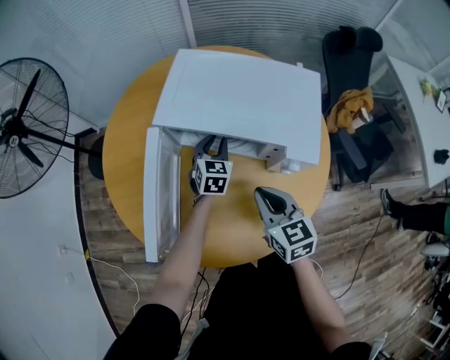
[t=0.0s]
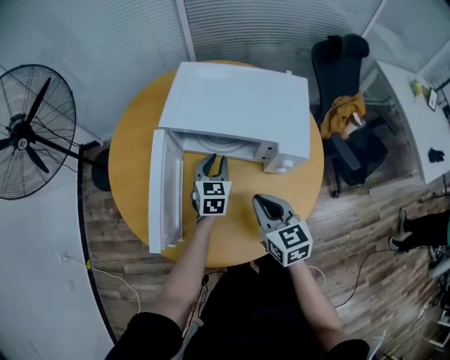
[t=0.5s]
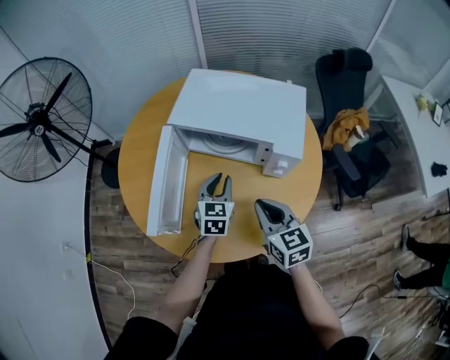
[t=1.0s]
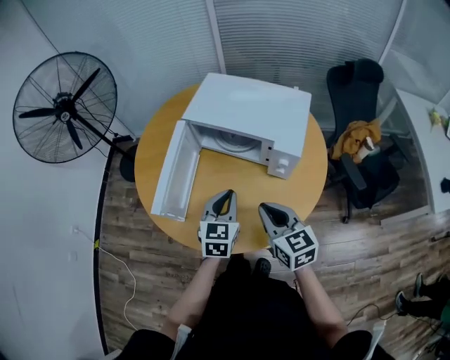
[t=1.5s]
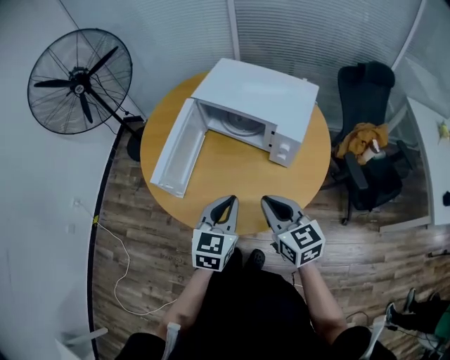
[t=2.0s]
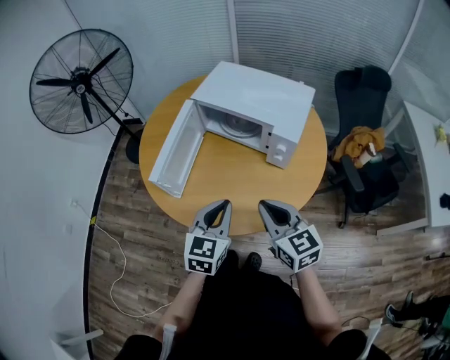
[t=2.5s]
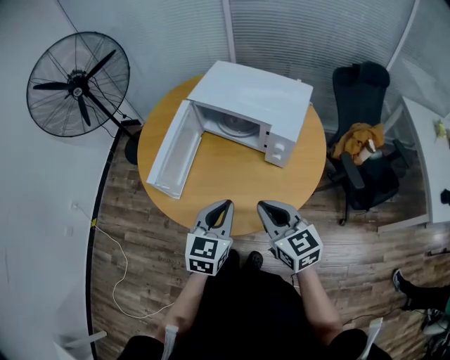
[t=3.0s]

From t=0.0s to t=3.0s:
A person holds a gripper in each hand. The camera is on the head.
From t=0.0s to t=1.5s: The right gripper shifts some 15 cm backward and upward. Meanwhile the left gripper heads backward and upward, covering approximately 30 cm.
From t=1.5s to t=3.0s: The right gripper goes roughly 5 cm backward, while the left gripper heads backward, covering approximately 10 cm.

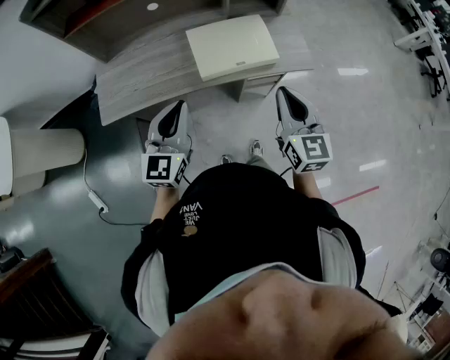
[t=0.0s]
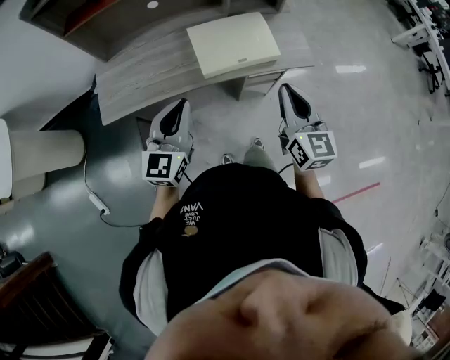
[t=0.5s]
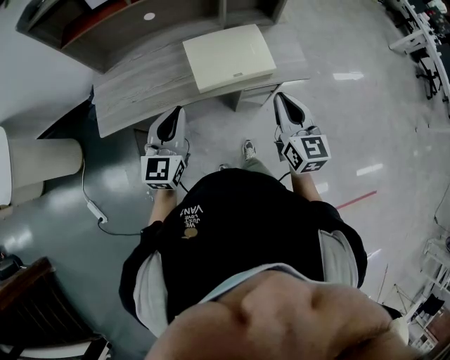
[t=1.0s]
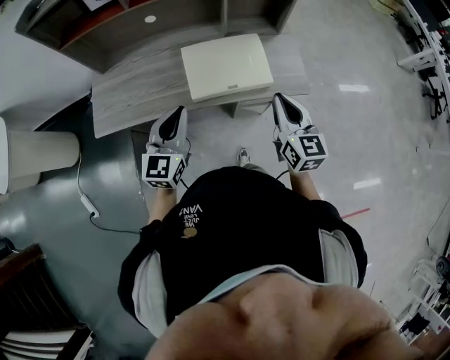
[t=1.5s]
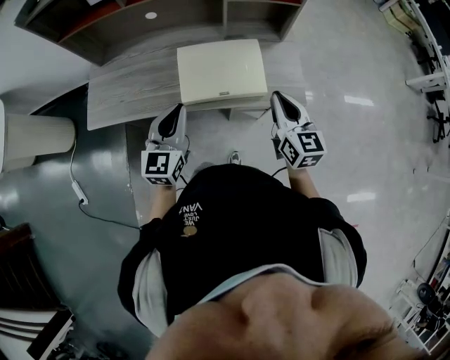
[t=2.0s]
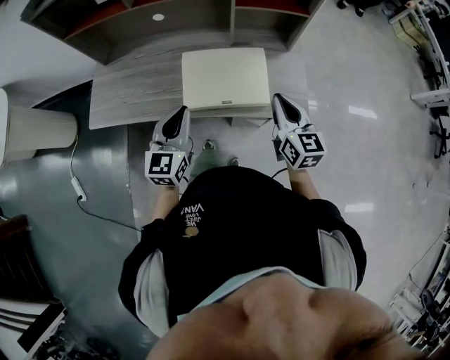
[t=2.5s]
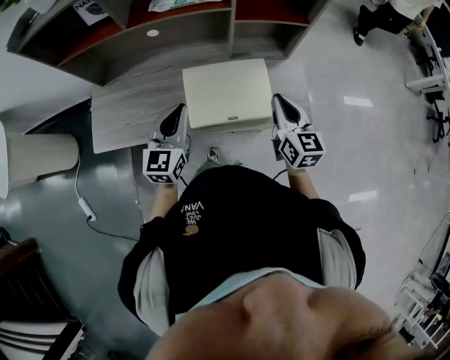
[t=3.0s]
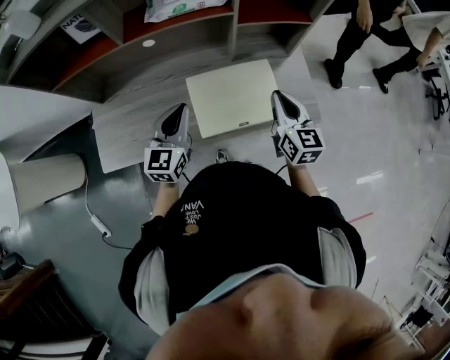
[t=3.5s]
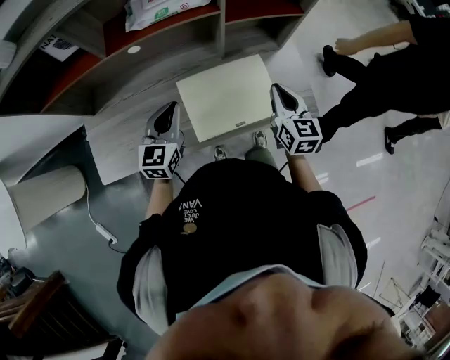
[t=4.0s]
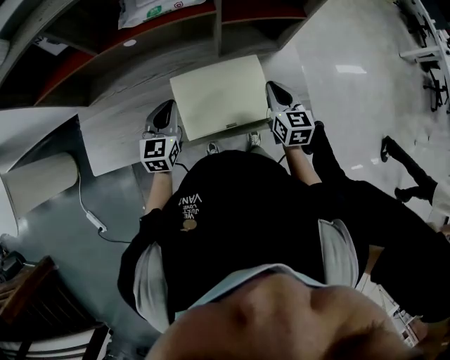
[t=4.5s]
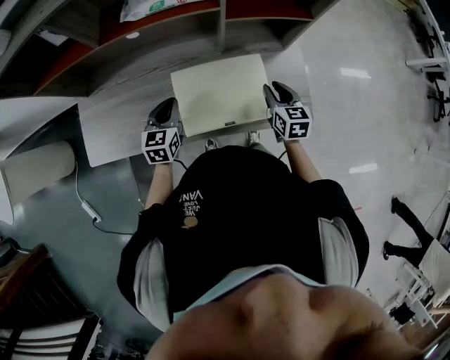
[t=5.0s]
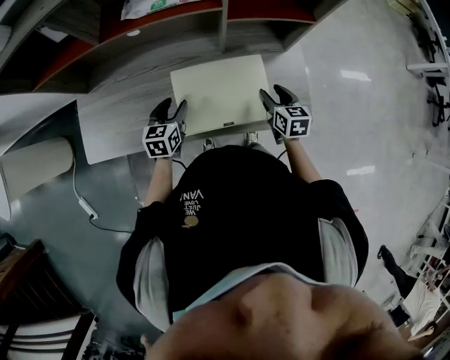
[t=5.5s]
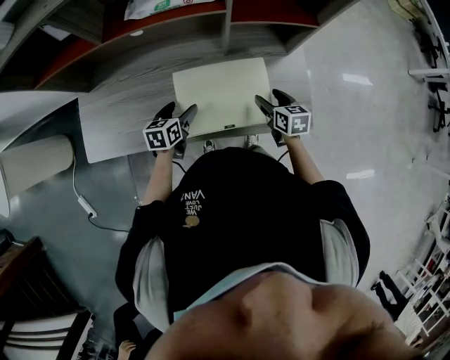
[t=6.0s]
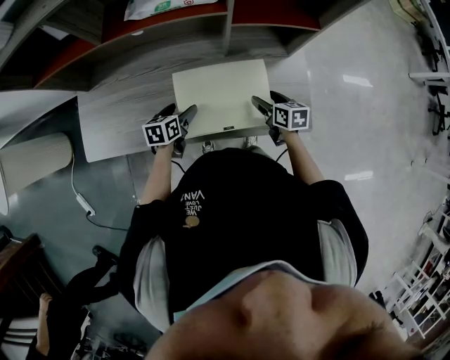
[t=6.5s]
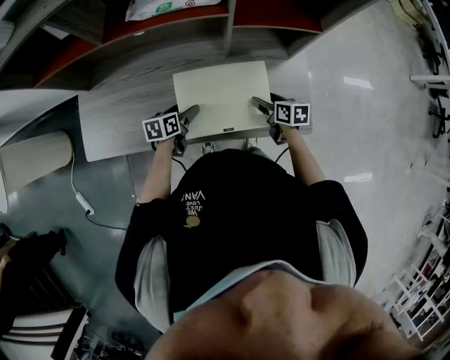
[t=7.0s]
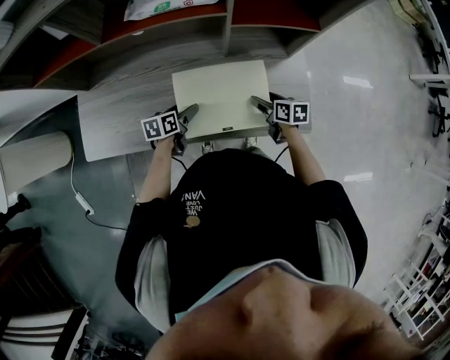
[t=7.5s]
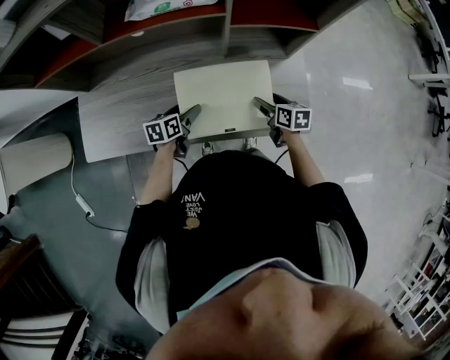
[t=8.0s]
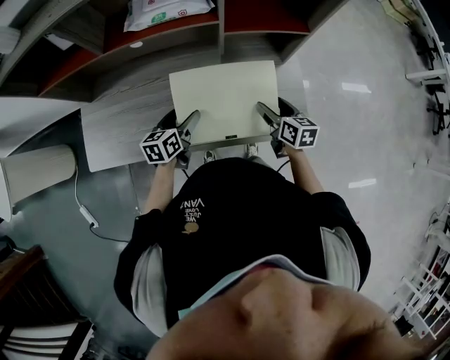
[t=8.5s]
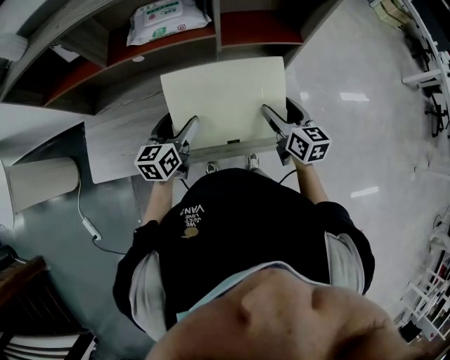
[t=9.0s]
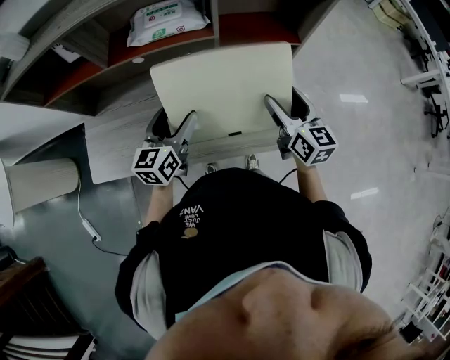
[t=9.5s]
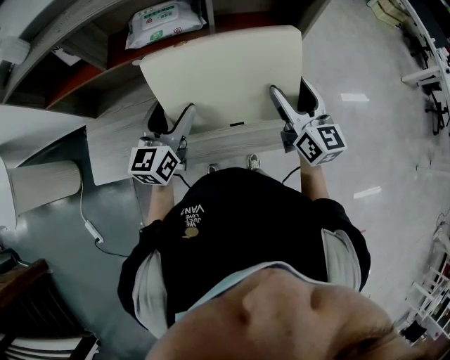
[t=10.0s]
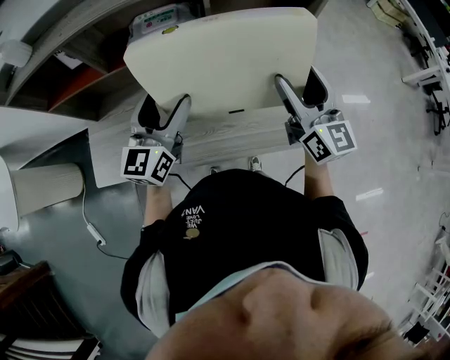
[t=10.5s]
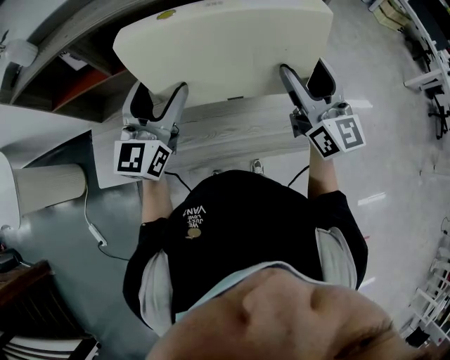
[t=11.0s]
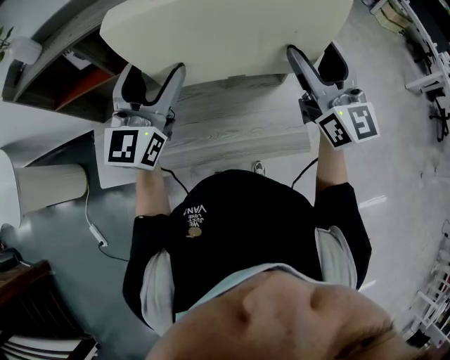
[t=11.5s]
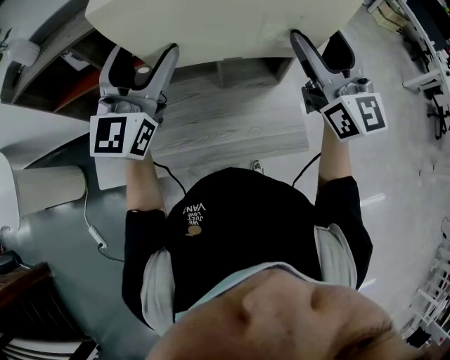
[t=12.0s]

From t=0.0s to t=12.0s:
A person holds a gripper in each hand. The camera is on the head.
From t=0.0s to t=2.0s: Both grippers move forward and to the right, some 15 cm.
From t=2.0s to t=4.0s: The grippers both shift forward by about 15 cm.
From t=4.0s to t=6.0s: Both grippers travel together downward, about 15 cm. The left gripper turns by some 40 degrees, and opens its fingers. Meanwhile the right gripper rotates about 30 degrees, and opens.
From t=6.0s to t=8.0s: The grippers stay close to where they were, moving slightly.
From t=8.0s to t=10.0s: The grippers both shift upward by some 30 cm. The right gripper angles its fingers upward, by roughly 40 degrees; the left gripper tips its fingers upward by about 30 degrees.
From t=10.0s to t=12.0s: The grippers both shift upward by approximately 20 cm. The right gripper changes its angle by approximately 20 degrees. Meanwhile the left gripper swivels roughly 30 degrees.

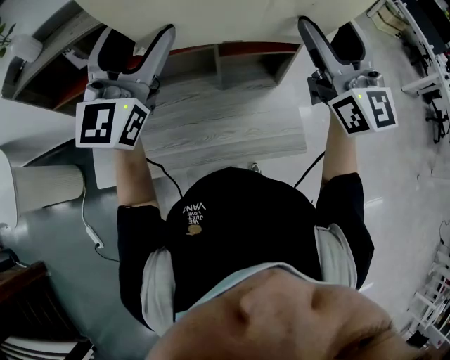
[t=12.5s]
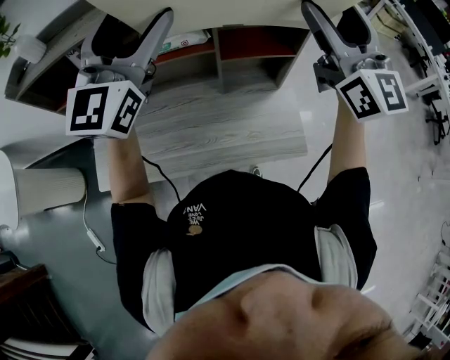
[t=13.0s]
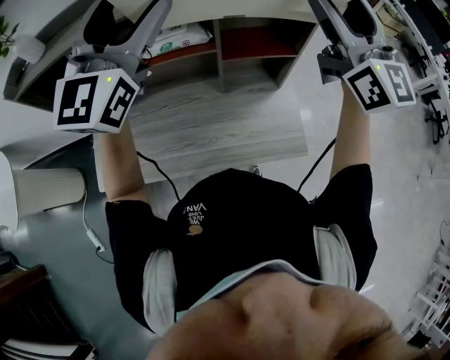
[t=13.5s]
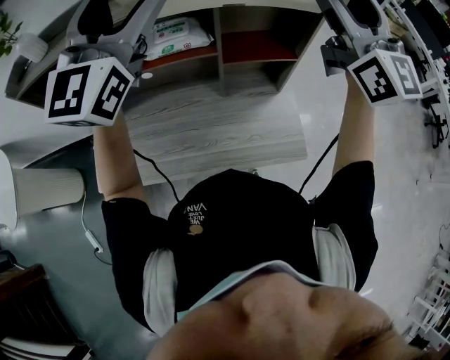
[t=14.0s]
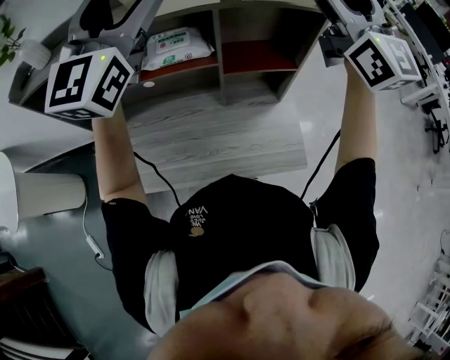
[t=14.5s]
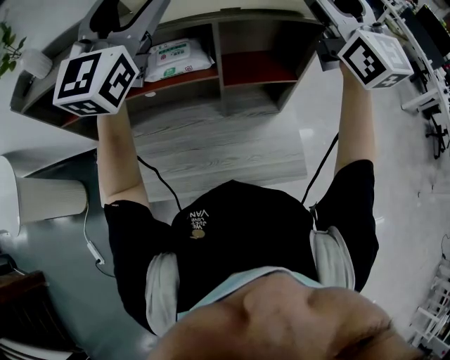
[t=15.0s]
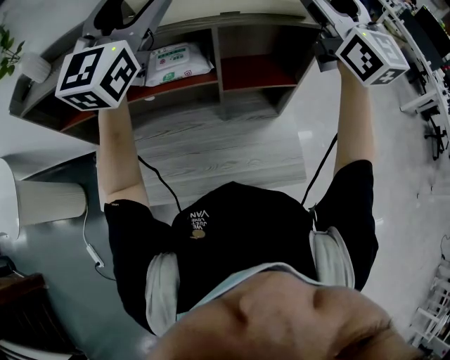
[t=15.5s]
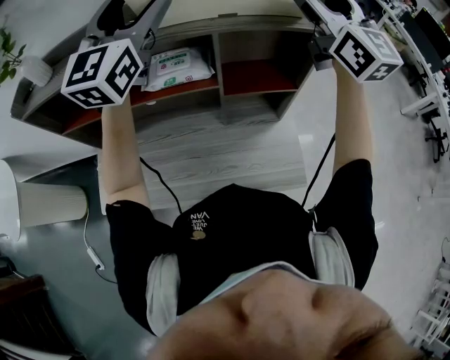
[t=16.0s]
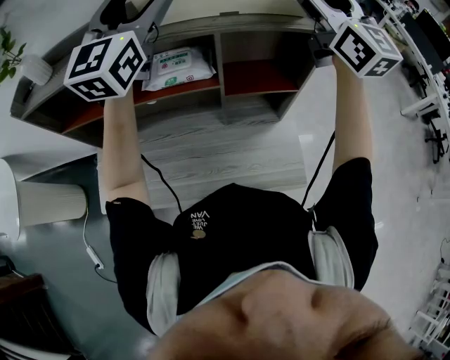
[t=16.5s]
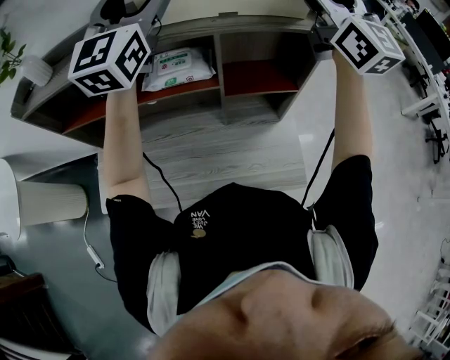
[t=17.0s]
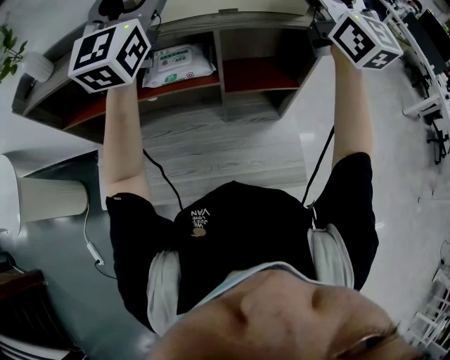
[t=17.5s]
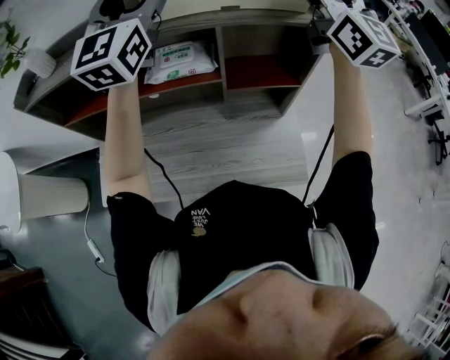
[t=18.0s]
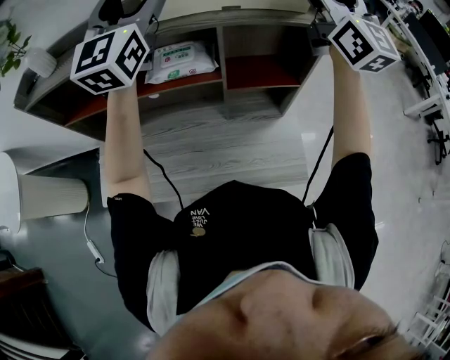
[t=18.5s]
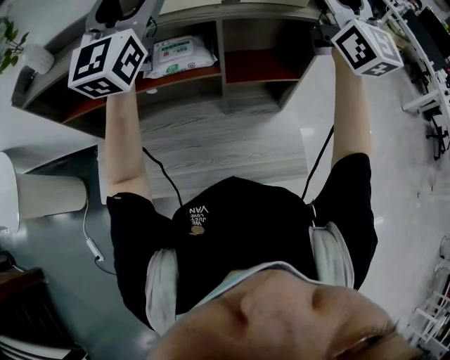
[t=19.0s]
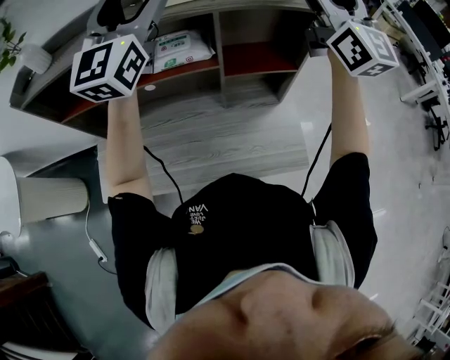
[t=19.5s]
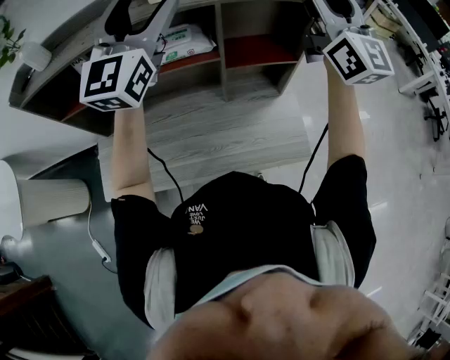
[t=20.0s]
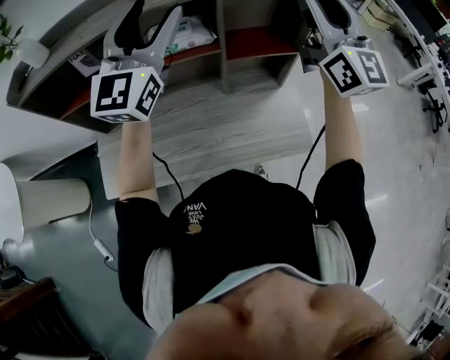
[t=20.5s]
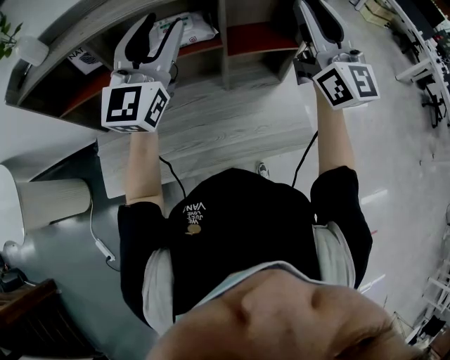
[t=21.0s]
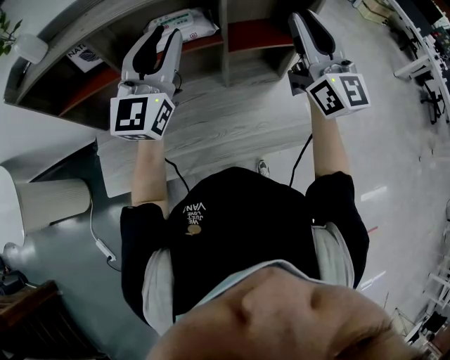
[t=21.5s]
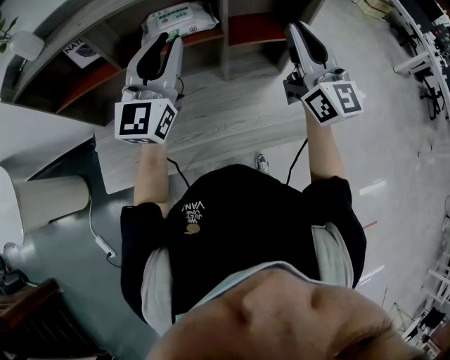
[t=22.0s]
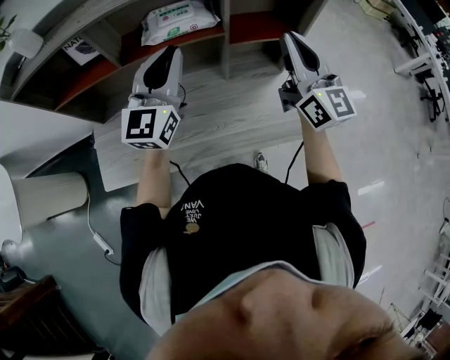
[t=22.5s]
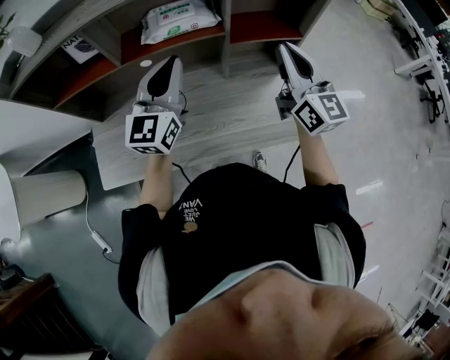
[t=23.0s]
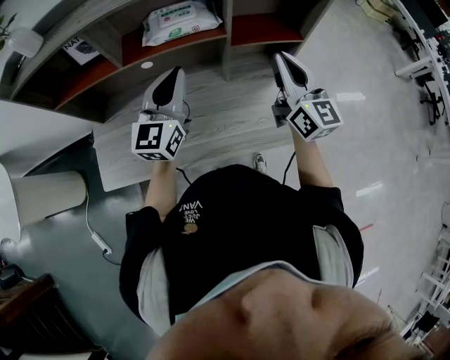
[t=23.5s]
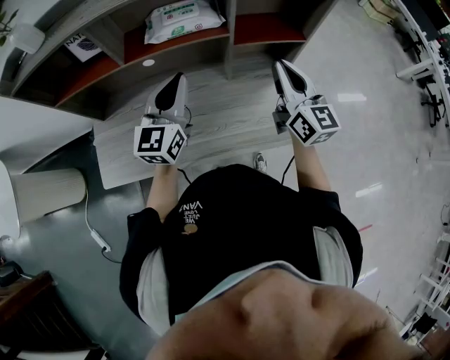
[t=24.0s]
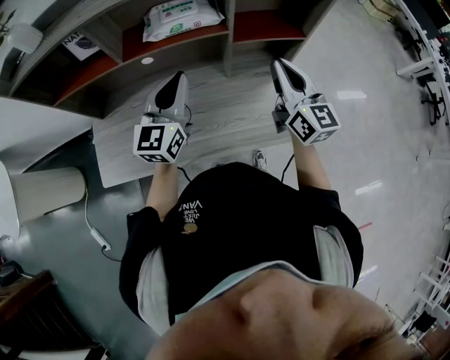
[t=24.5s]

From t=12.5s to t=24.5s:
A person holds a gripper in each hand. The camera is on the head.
From t=12.5s to t=14.5s: The right gripper goes roughly 10 cm upward and forward. Meanwhile the left gripper heads upward, covering about 10 cm.
From t=14.5s to t=16.5s: Both grippers travel together forward, about 10 cm.
From t=16.5s to t=18.5s: There are only small adjustments of the grippers.
From t=18.5s to t=20.5s: Both grippers travel together backward and downward, roughly 10 cm. The right gripper closes.
From t=20.5s to t=22.5s: The two grippers go roughly 15 cm downward. The left gripper closes. The right gripper closes.
From t=22.5s to t=24.5s: The two grippers go some 10 cm downward.
